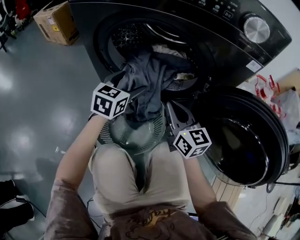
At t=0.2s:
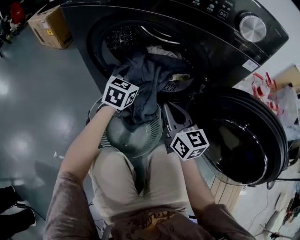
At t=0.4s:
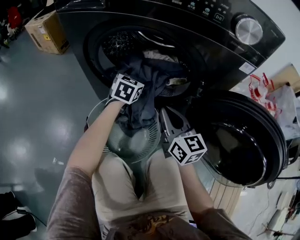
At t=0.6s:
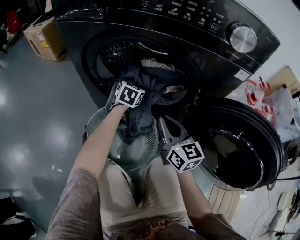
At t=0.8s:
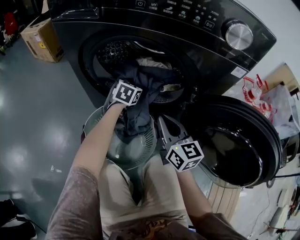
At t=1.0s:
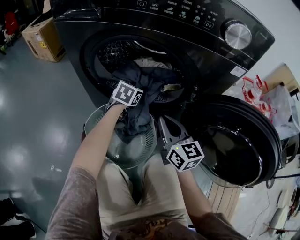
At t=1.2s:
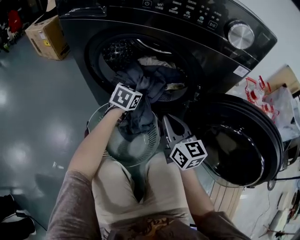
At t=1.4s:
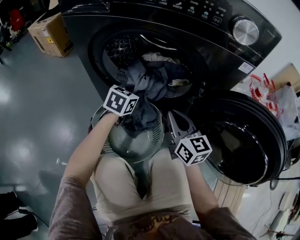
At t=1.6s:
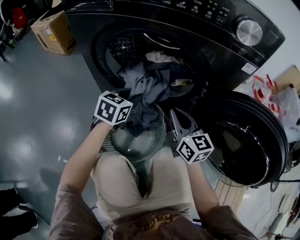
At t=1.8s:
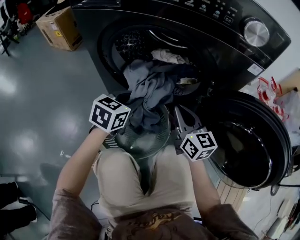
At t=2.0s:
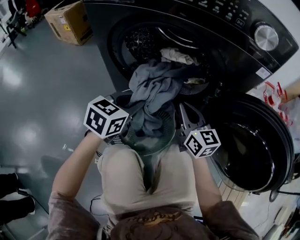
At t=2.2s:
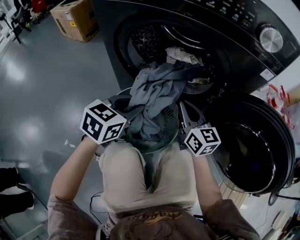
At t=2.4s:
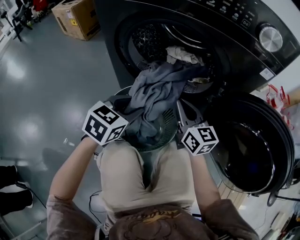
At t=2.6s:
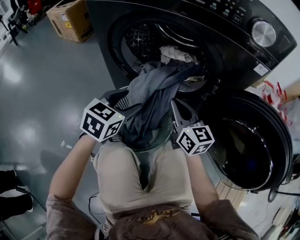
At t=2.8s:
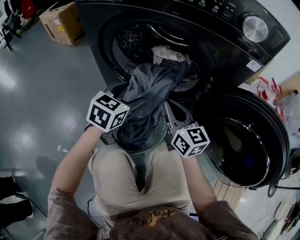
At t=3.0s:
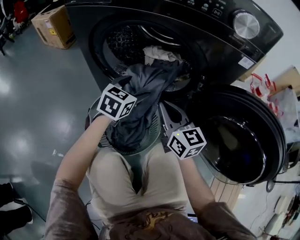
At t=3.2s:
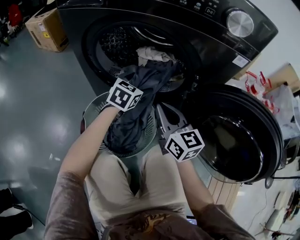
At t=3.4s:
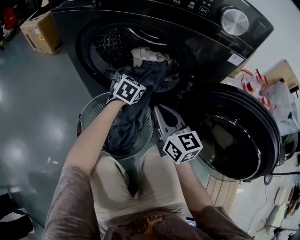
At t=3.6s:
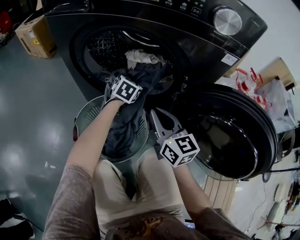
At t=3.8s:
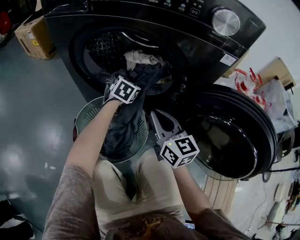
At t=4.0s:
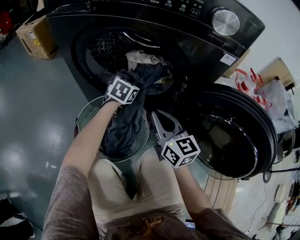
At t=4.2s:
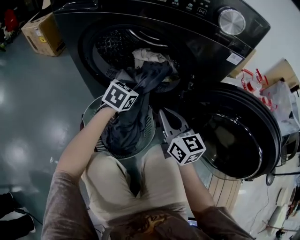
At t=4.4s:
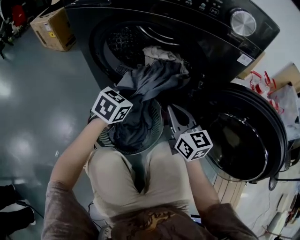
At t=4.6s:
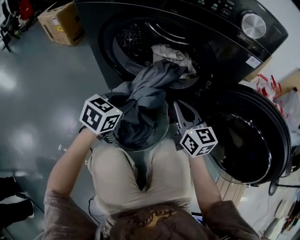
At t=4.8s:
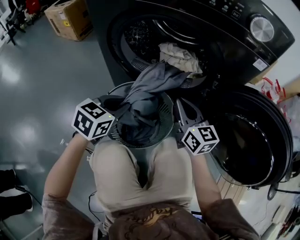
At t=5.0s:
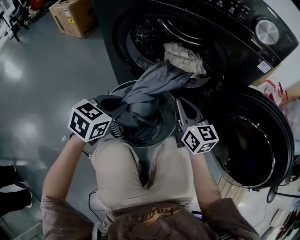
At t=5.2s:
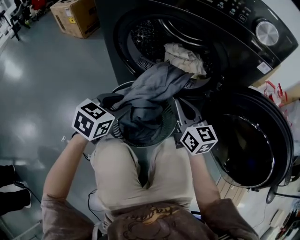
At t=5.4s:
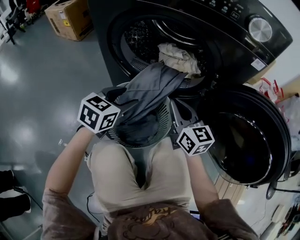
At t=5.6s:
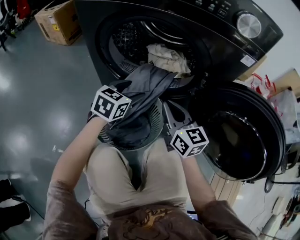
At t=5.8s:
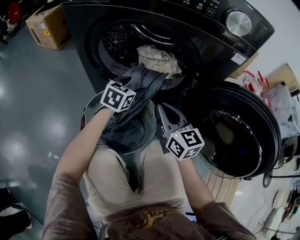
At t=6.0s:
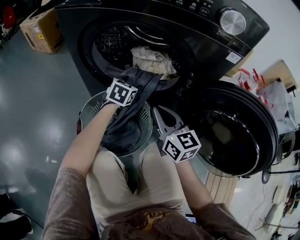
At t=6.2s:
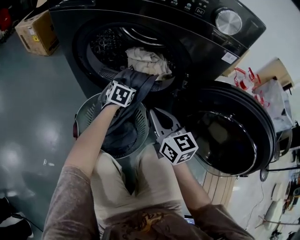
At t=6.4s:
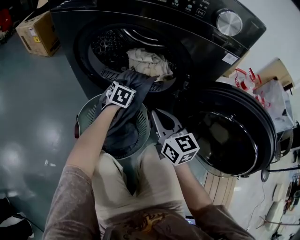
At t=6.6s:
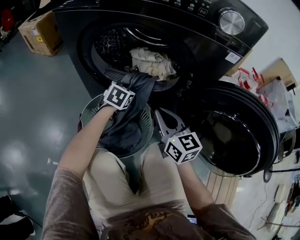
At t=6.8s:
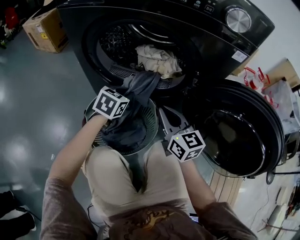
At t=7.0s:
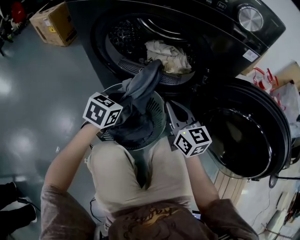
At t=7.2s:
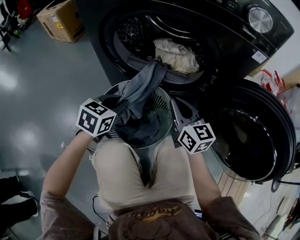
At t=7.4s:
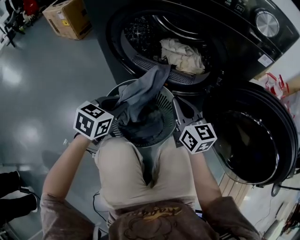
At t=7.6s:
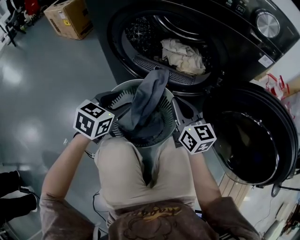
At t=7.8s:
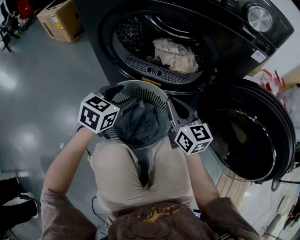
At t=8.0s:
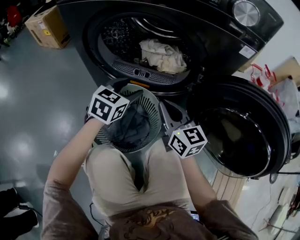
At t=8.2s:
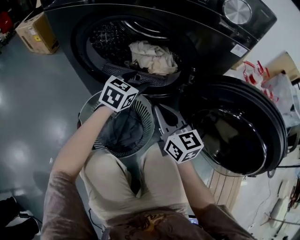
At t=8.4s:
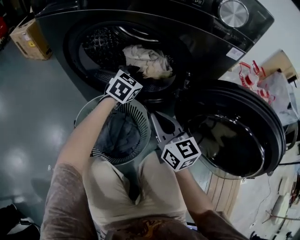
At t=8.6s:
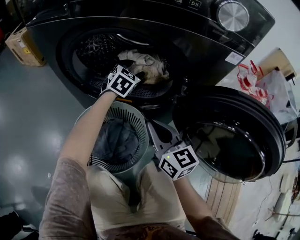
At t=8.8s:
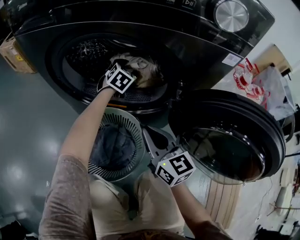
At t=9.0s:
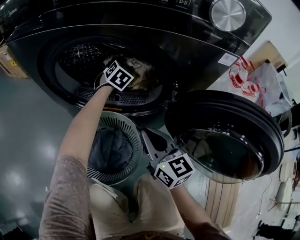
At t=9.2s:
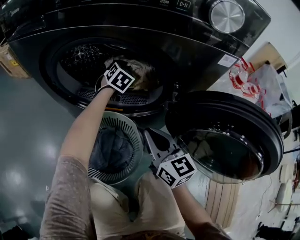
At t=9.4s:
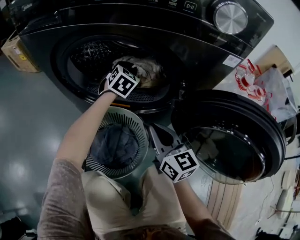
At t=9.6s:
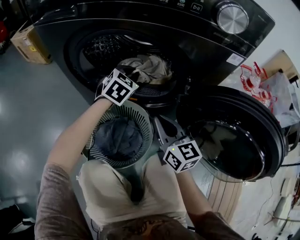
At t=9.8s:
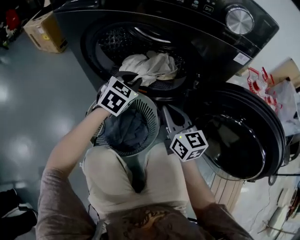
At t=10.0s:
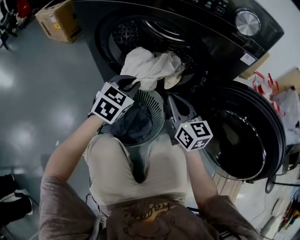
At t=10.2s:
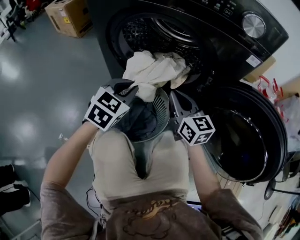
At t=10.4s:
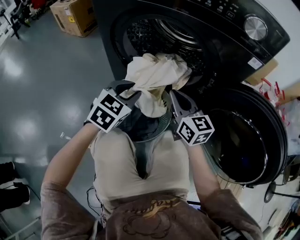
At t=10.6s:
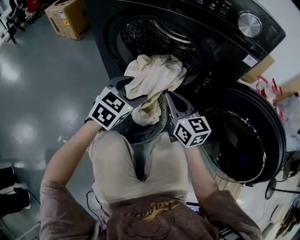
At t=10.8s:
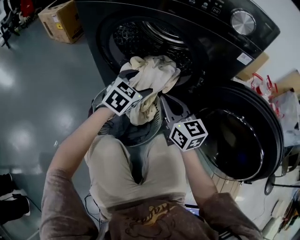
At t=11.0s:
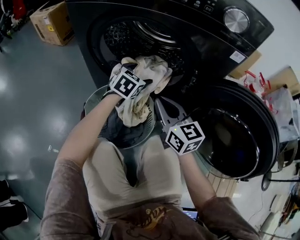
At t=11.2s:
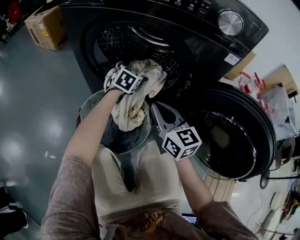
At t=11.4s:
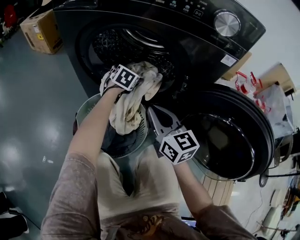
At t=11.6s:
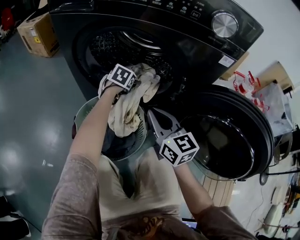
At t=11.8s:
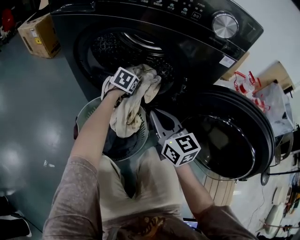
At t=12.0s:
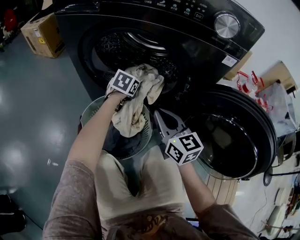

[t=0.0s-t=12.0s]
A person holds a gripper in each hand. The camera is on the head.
t=0.0s to t=1.6s: The left gripper goes forward and returns, approximately 10 cm each way, and closes up.
t=1.6s to t=3.0s: The left gripper goes backward and returns, roughly 10 cm each way, and opens.
t=3.0s to t=4.4s: The left gripper moves approximately 10 cm forward and comes back, and closes its fingers.
t=4.4s to t=6.0s: The left gripper shifts some 10 cm forward and downward, and opens its fingers.
t=6.0s to t=7.6s: The left gripper moves backward and to the left, about 20 cm, and closes and opens again.
t=7.6s to t=9.0s: The left gripper is displaced forward and to the right by some 40 cm, and rotates some 30 degrees.
t=9.0s to t=10.4s: The right gripper ends up some 5 cm from where it was. The left gripper shifts roughly 35 cm backward and to the left.
t=10.4s to t=12.0s: The left gripper goes some 20 cm forward, downward and to the right, and opens and closes again.

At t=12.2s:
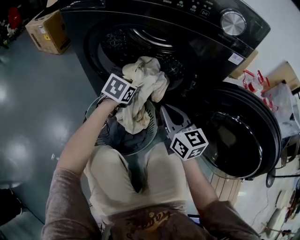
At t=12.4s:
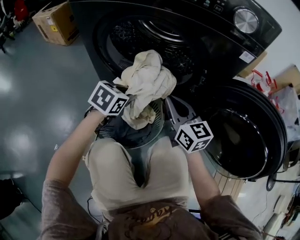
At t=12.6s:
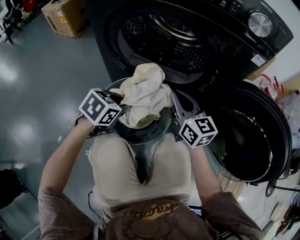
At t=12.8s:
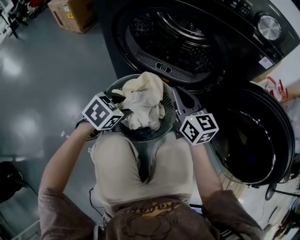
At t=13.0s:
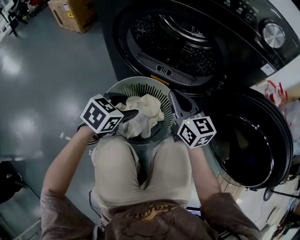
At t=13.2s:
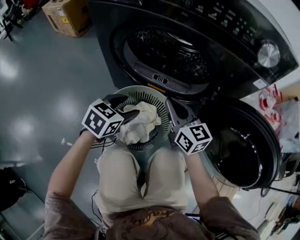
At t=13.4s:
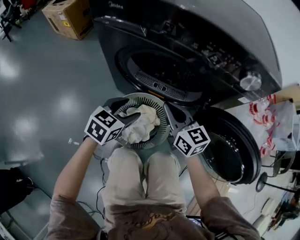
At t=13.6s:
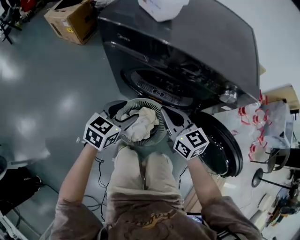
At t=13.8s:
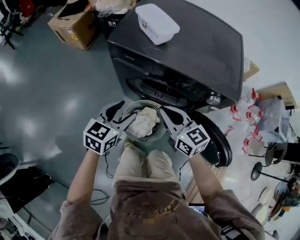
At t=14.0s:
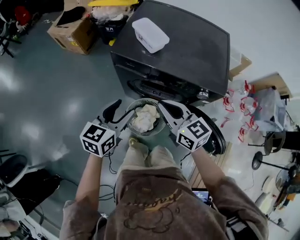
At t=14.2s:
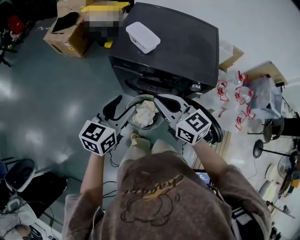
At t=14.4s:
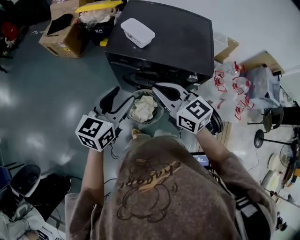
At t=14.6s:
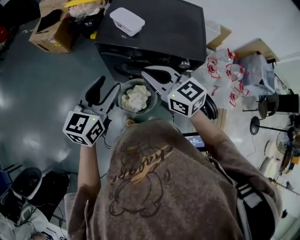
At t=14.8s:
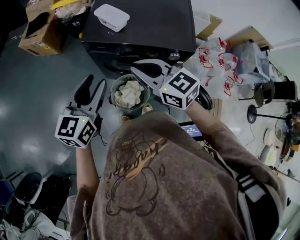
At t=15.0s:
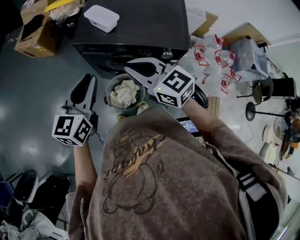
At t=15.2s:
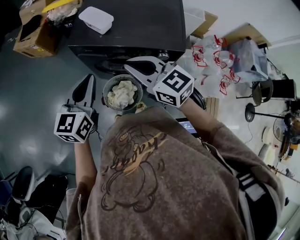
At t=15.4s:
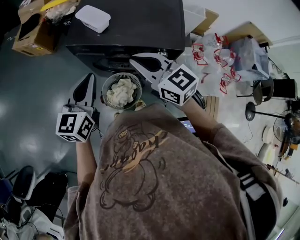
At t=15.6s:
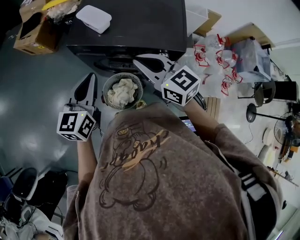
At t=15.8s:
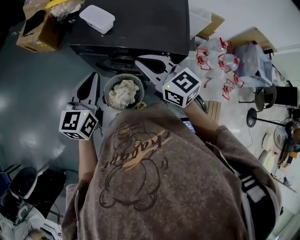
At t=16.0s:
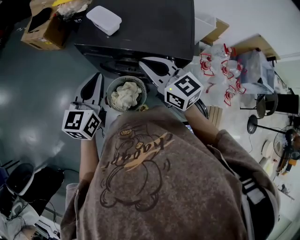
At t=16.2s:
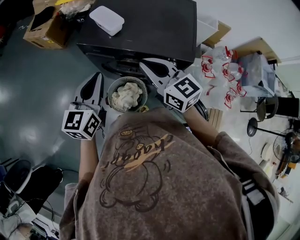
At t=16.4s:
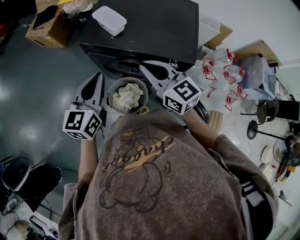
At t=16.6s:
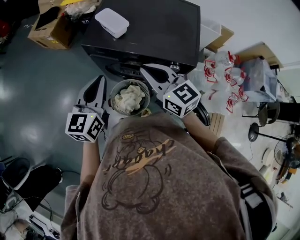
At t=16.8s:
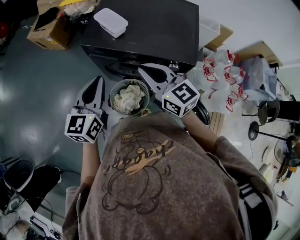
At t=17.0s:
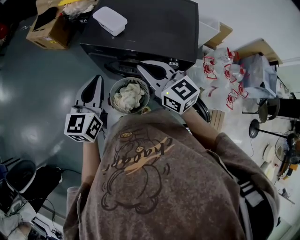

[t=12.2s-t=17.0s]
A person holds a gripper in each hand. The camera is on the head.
t=12.2s to t=13.8s: Both grippers travel together upward and to the left, some 40 cm. The left gripper opens its fingers.
t=13.8s to t=15.4s: Both grippers travel together upward, about 25 cm. The left gripper closes.
t=15.4s to t=17.0s: The grippers make only small movements.

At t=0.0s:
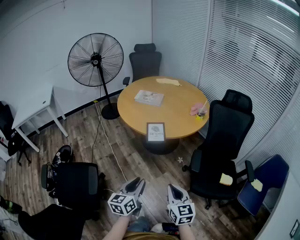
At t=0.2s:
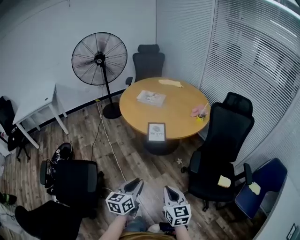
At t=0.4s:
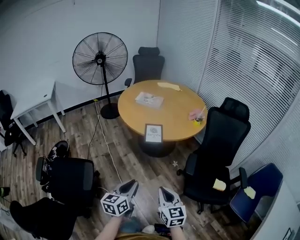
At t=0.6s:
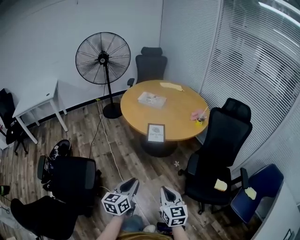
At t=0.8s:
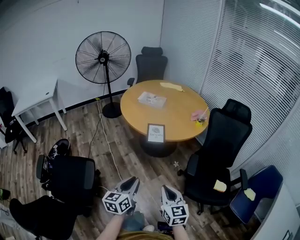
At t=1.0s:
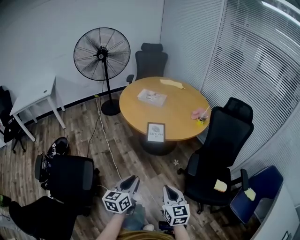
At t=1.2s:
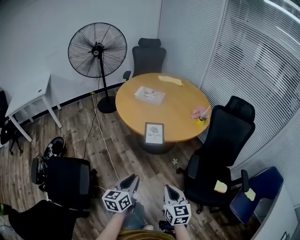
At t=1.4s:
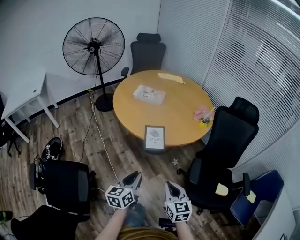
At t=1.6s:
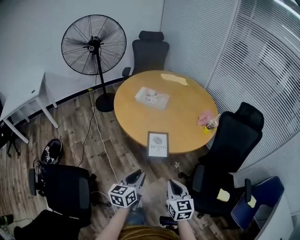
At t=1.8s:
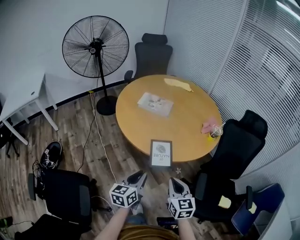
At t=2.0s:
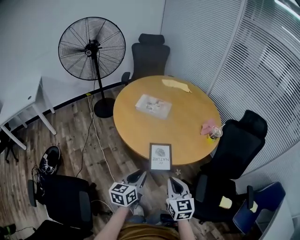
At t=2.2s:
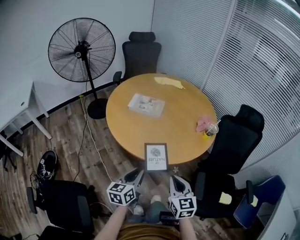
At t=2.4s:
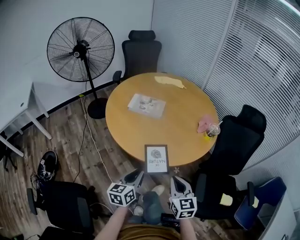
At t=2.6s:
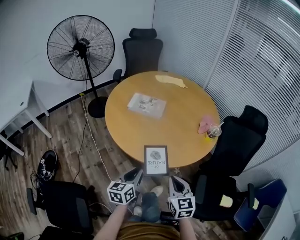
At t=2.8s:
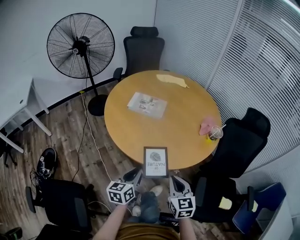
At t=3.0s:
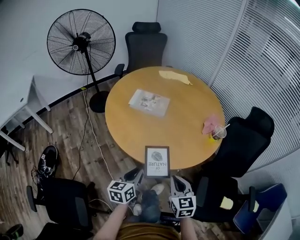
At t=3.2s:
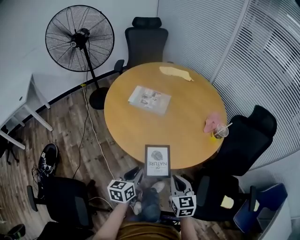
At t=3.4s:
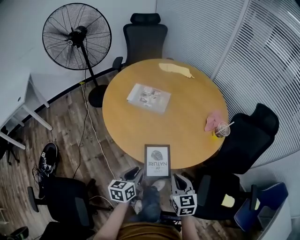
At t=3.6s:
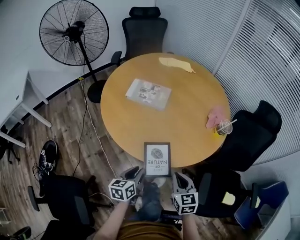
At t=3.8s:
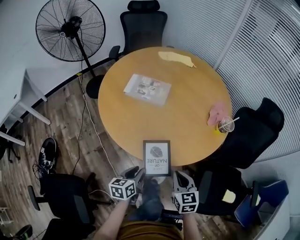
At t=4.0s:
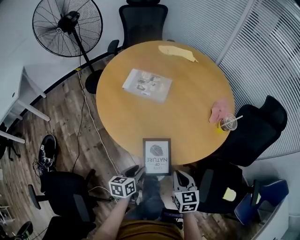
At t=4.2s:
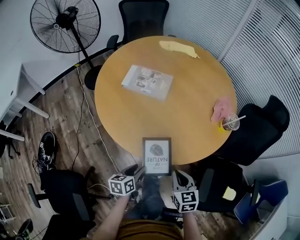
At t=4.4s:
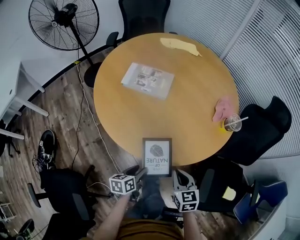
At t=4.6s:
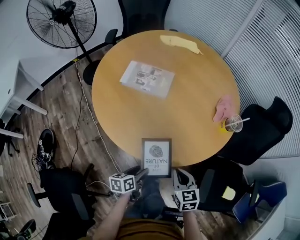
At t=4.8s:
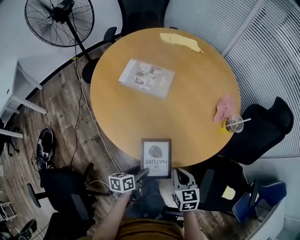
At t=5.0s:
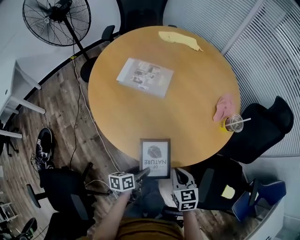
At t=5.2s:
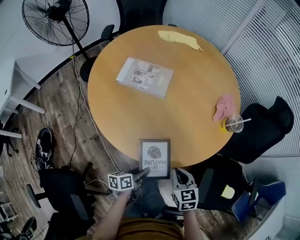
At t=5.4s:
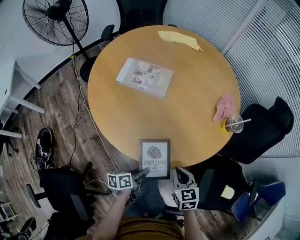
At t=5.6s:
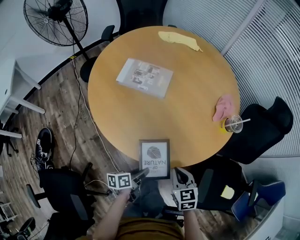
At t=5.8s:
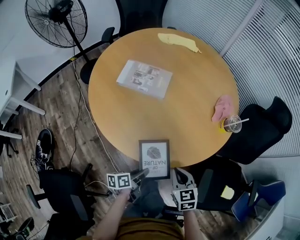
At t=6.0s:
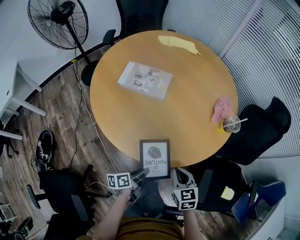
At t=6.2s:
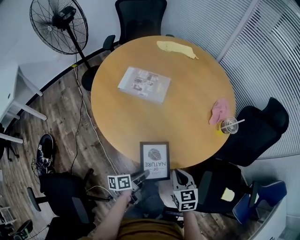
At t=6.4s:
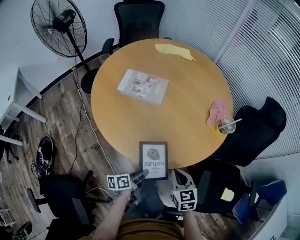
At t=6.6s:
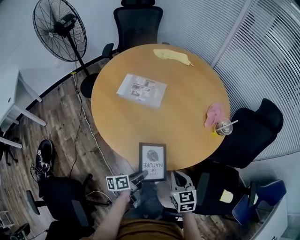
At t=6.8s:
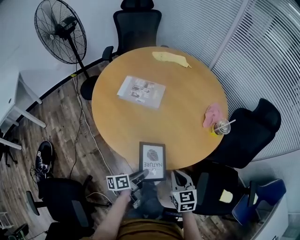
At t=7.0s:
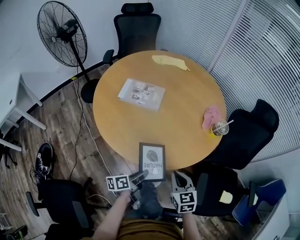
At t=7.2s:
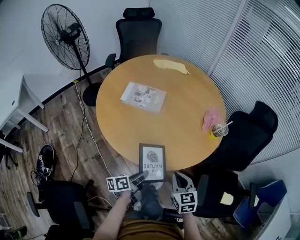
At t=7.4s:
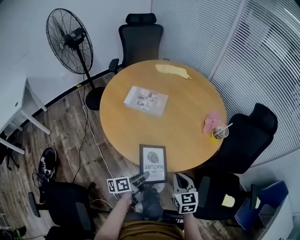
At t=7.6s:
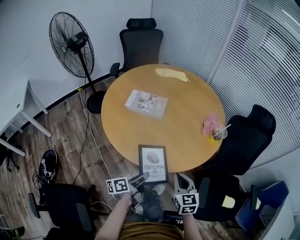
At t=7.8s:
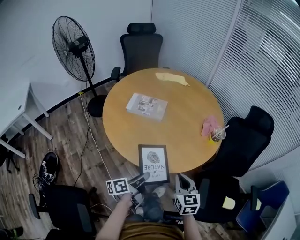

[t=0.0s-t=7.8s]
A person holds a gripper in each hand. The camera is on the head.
t=0.0s to t=1.6s: Both grippers travel together forward, approximately 20 cm.
t=1.6s to t=3.2s: The left gripper is displaced forward and downward by some 20 cm; the right gripper heads forward, covering approximately 20 cm.
t=3.2s to t=4.6s: The left gripper travels downward by approximately 15 cm, turns by roughly 30 degrees, and opens its fingers. The right gripper travels downward and forward by roughly 10 cm.
t=4.6s to t=6.2s: The left gripper turns by some 20 degrees, and closes its fingers.
t=6.2s to t=7.8s: The grippers both shift upward by about 10 cm.
